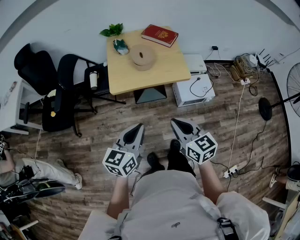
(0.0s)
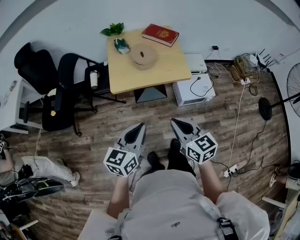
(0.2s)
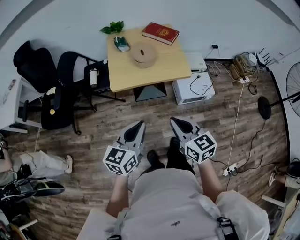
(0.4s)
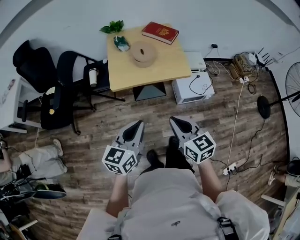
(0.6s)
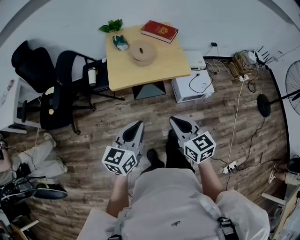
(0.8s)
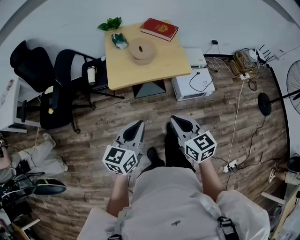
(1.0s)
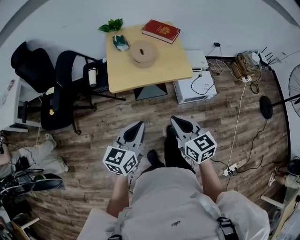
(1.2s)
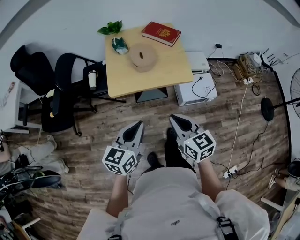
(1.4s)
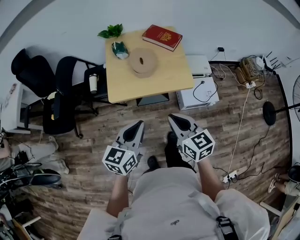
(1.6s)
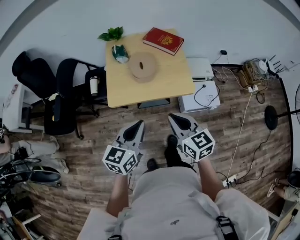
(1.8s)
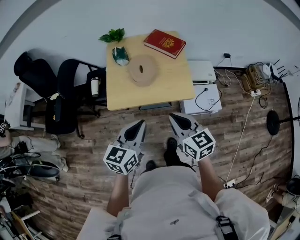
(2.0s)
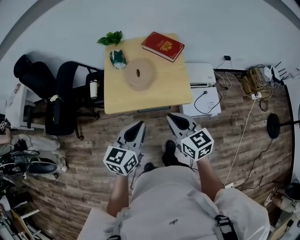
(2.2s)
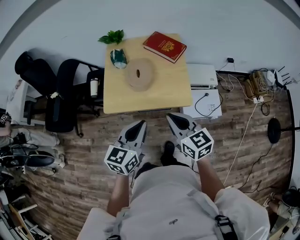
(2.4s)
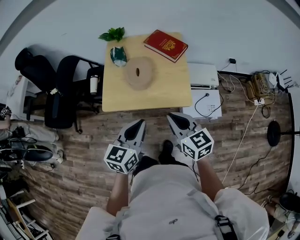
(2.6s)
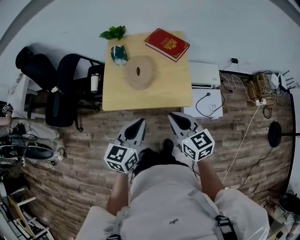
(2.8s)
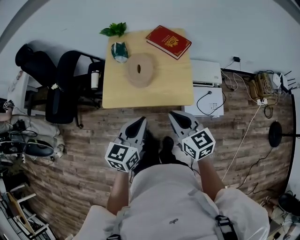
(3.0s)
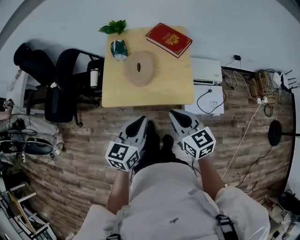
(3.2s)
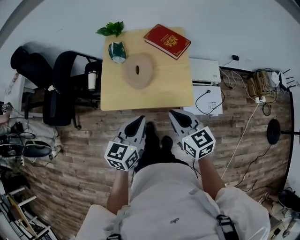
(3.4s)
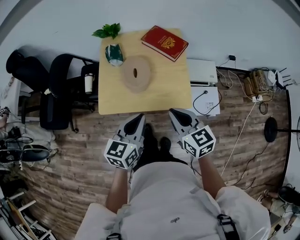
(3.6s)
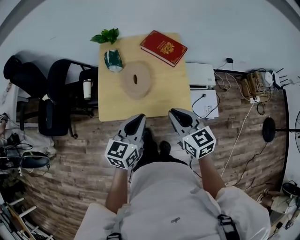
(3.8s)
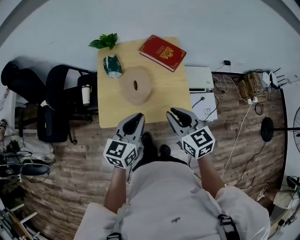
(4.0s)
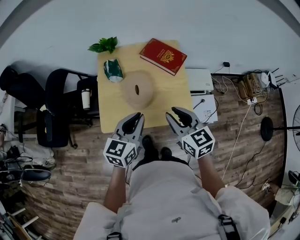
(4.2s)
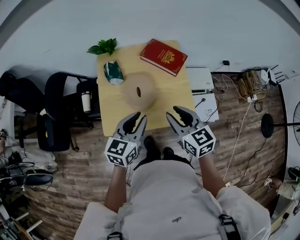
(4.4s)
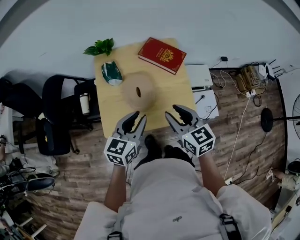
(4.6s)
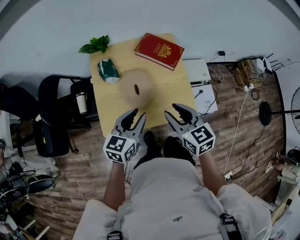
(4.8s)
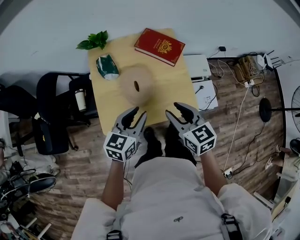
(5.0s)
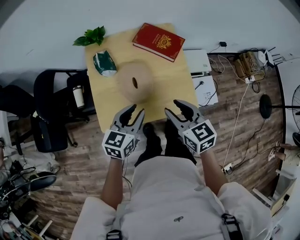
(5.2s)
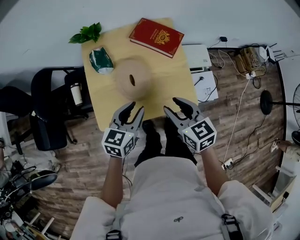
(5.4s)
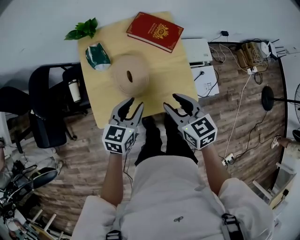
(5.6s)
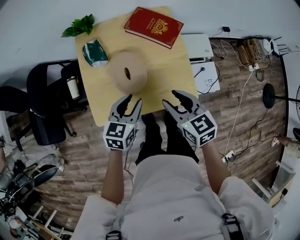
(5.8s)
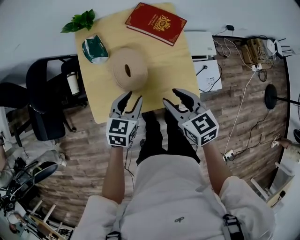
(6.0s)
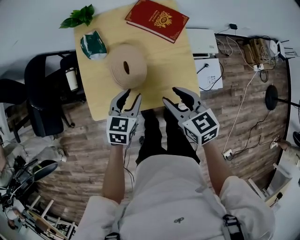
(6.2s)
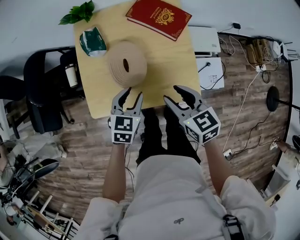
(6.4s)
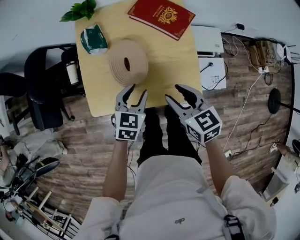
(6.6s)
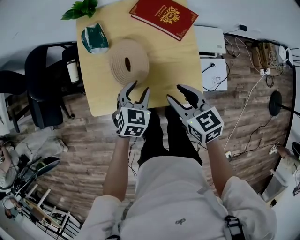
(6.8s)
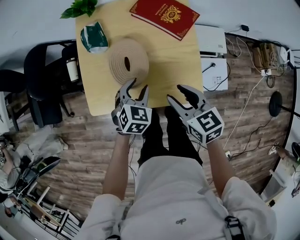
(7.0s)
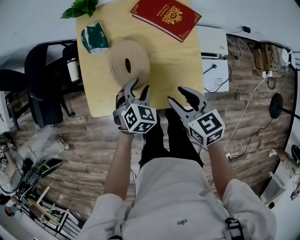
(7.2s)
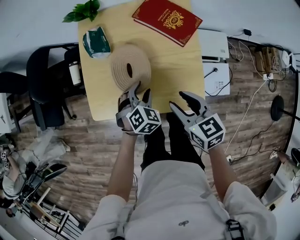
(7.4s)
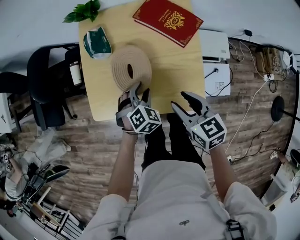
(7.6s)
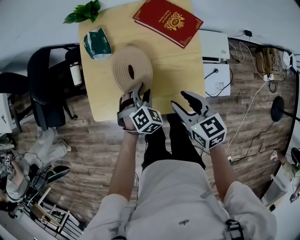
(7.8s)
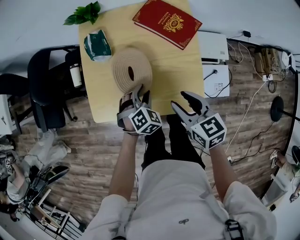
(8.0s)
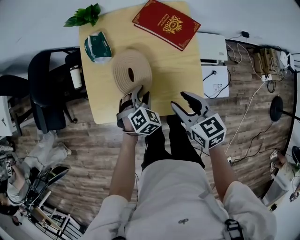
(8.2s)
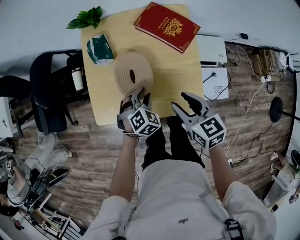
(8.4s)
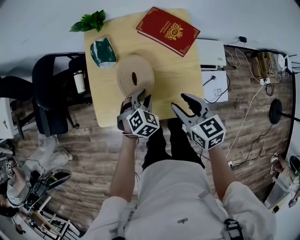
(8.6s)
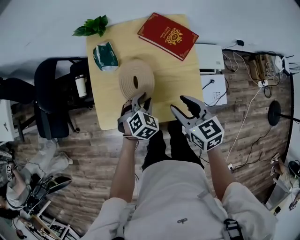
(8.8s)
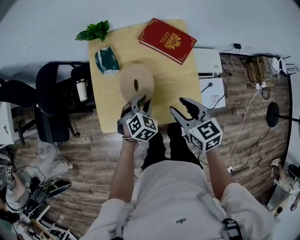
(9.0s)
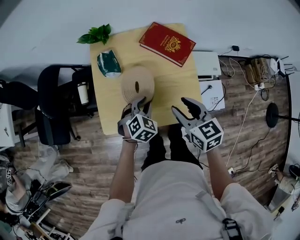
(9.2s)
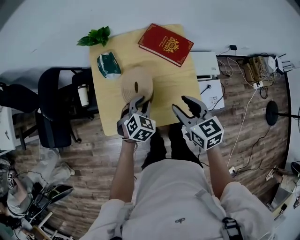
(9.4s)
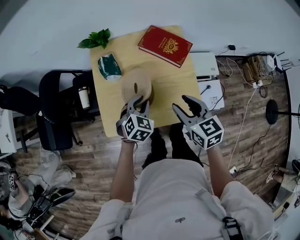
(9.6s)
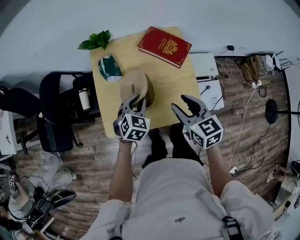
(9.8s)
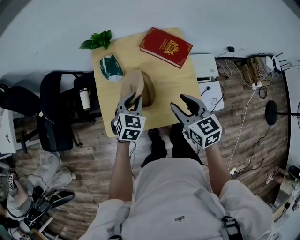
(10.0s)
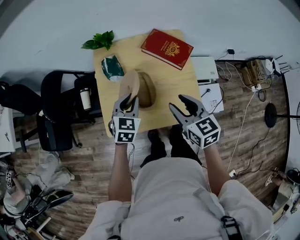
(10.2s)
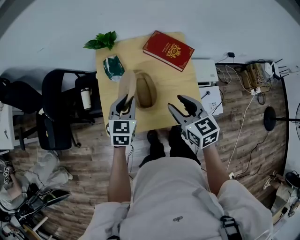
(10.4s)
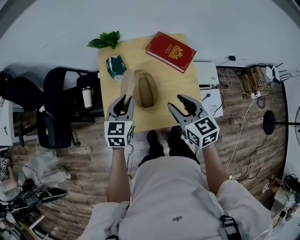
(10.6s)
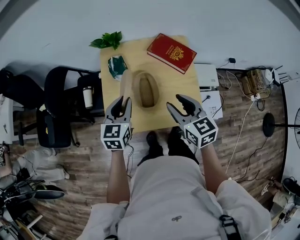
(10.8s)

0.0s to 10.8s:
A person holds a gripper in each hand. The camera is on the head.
0.0s to 1.6s: The two grippers go about 10 cm forward.
1.6s to 3.0s: Both grippers travel together forward and to the right, approximately 15 cm.
3.0s to 4.6s: The two grippers go roughly 15 cm forward. The right gripper opens. The left gripper opens up.
4.6s to 6.2s: The right gripper heads downward, covering some 10 cm. The left gripper travels downward by some 15 cm, and changes its angle by approximately 20 degrees.
6.2s to 7.8s: The left gripper travels downward by roughly 10 cm, and turns by approximately 40 degrees. Meanwhile the right gripper ends up roughly 5 cm from where it was.
7.8s to 9.2s: Both grippers move upward, some 5 cm.
9.2s to 10.8s: The right gripper shifts some 10 cm to the left and upward, while the left gripper is displaced upward and to the left by some 20 cm, and rotates approximately 50 degrees.

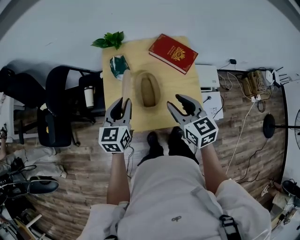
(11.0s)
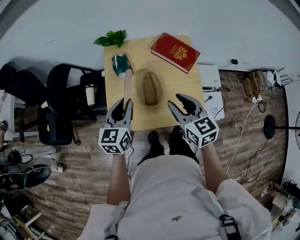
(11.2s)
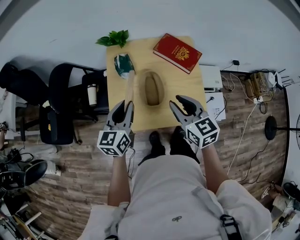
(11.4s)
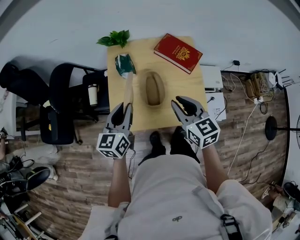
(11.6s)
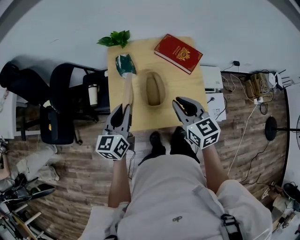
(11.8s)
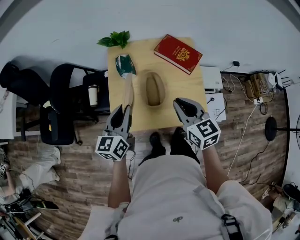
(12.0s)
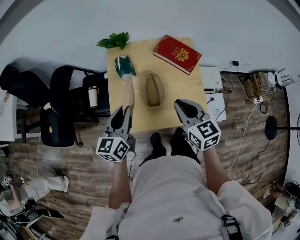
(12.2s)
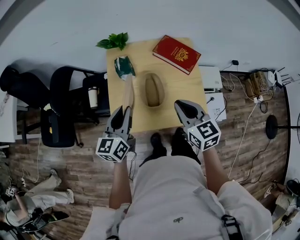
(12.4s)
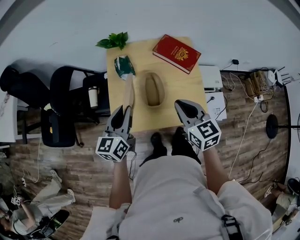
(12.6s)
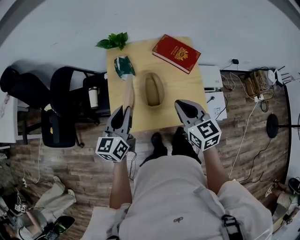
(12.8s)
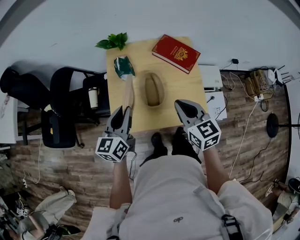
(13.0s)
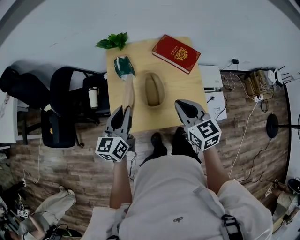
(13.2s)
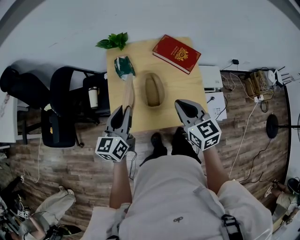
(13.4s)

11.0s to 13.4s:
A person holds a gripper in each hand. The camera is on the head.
11.0s to 12.2s: The right gripper closes its fingers.
12.2s to 13.4s: Both grippers stay about where they are.

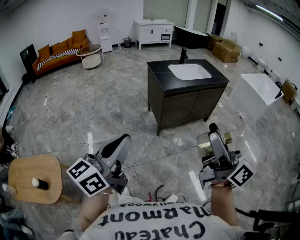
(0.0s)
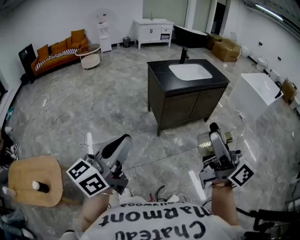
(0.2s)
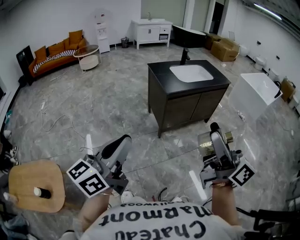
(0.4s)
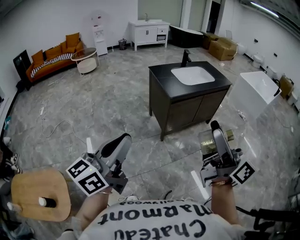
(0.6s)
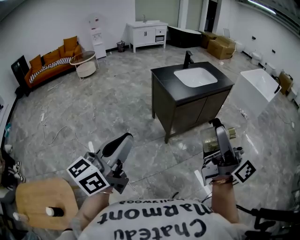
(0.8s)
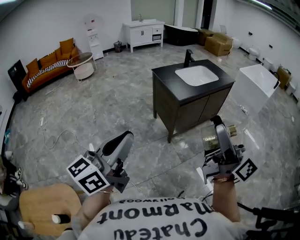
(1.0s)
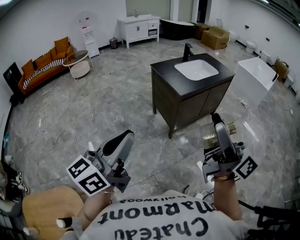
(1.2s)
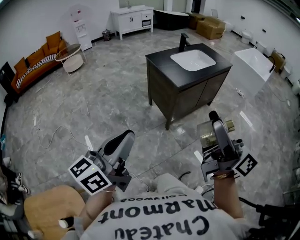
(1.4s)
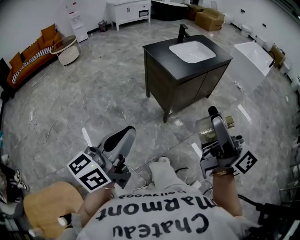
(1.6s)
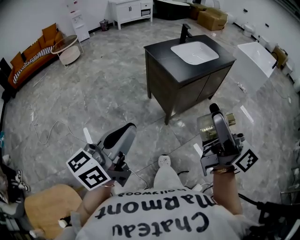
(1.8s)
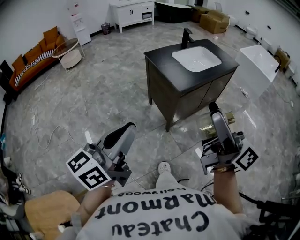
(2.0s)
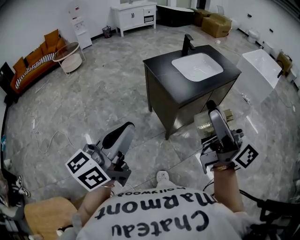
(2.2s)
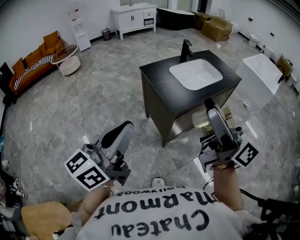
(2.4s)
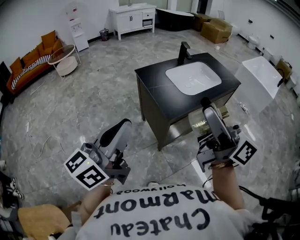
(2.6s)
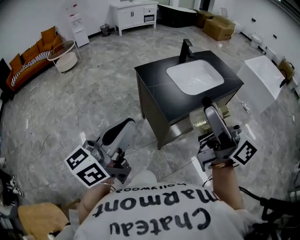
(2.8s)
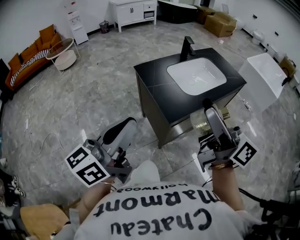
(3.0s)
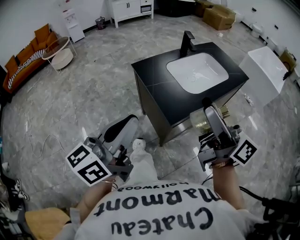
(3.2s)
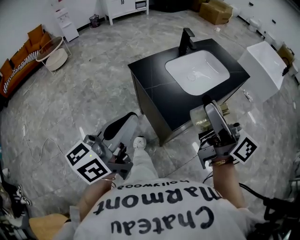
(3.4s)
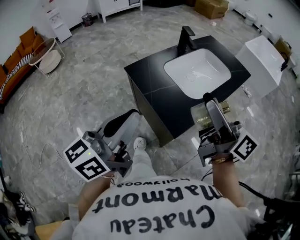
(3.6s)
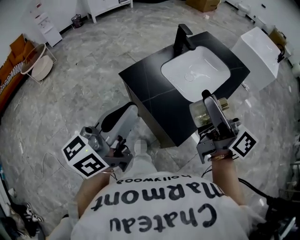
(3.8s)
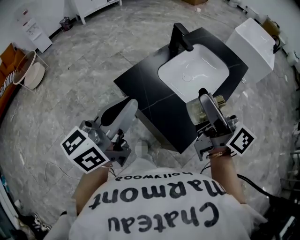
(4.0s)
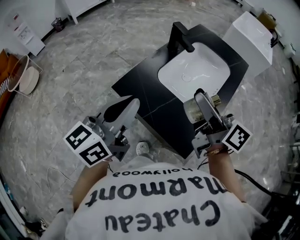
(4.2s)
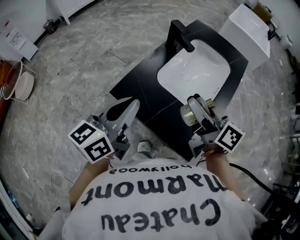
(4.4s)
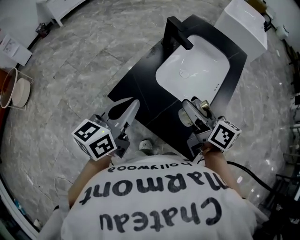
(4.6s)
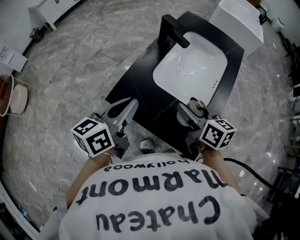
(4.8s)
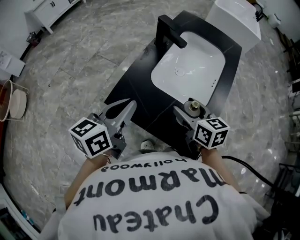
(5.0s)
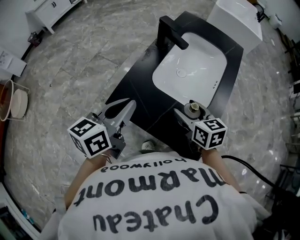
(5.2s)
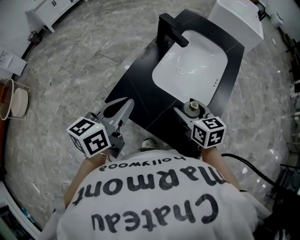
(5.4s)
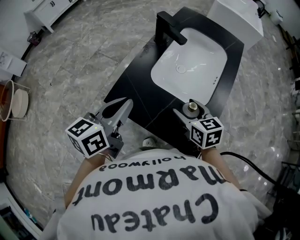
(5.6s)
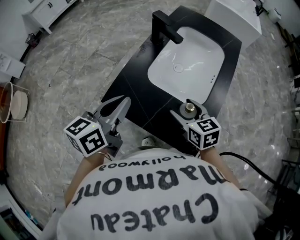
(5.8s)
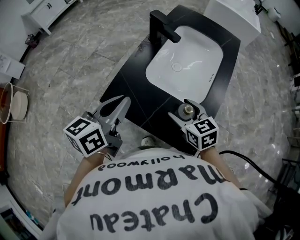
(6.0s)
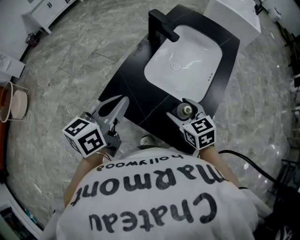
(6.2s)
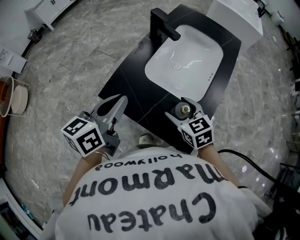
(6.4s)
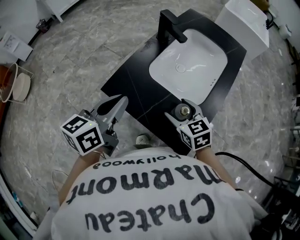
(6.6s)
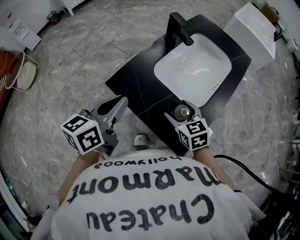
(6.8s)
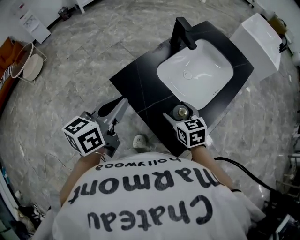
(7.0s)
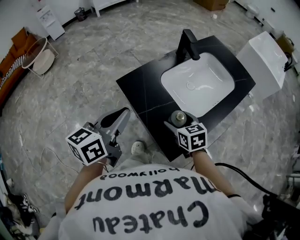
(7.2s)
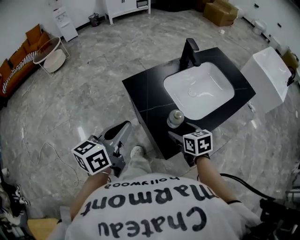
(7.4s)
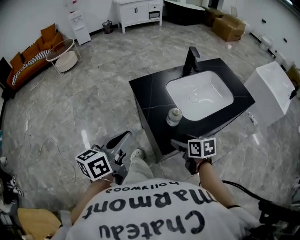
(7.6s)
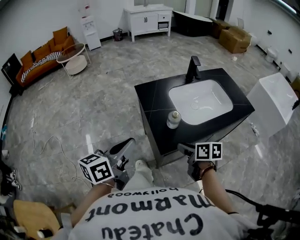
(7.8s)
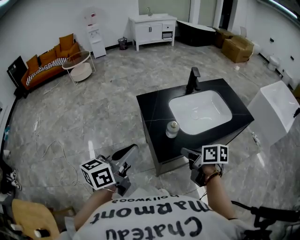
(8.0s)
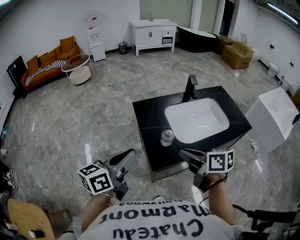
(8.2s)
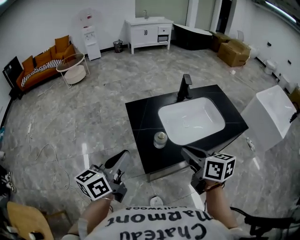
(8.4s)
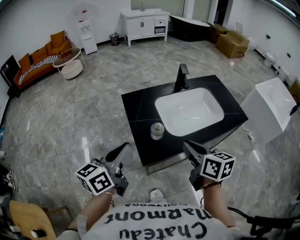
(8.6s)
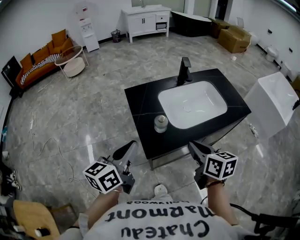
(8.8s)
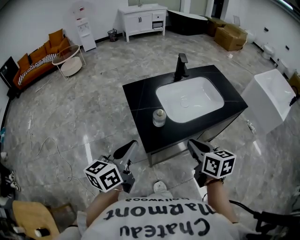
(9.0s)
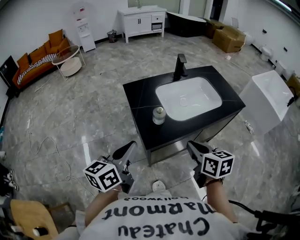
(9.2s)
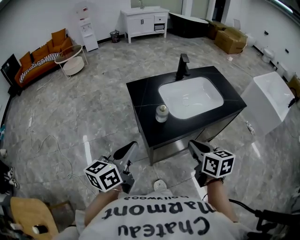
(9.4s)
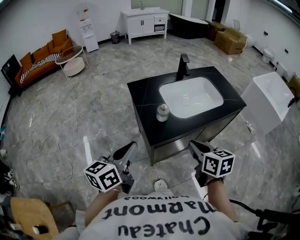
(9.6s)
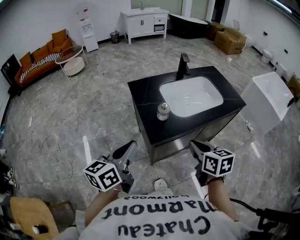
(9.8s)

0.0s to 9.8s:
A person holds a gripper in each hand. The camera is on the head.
0.0s to 1.4s: Both grippers move to the left and forward, about 25 cm.
1.4s to 2.8s: Both grippers move forward, roughly 35 cm.
2.8s to 4.2s: The two grippers go roughly 35 cm forward. The left gripper rotates about 20 degrees, while the right gripper changes its angle by some 30 degrees.
4.2s to 5.6s: The right gripper is displaced downward by some 20 cm, and points its fingers some 40 degrees further downward. Meanwhile the left gripper is displaced downward and forward by approximately 15 cm, and swivels approximately 20 degrees.
5.6s to 7.0s: The right gripper changes its angle by roughly 20 degrees. Meanwhile the left gripper shifts some 10 cm backward.
7.0s to 8.4s: The right gripper goes approximately 20 cm upward, rotates approximately 30 degrees, and closes; the left gripper moves some 25 cm, and changes its angle by approximately 30 degrees.
8.4s to 9.8s: The left gripper is displaced backward by approximately 10 cm. Meanwhile the right gripper travels backward and downward by roughly 10 cm.
